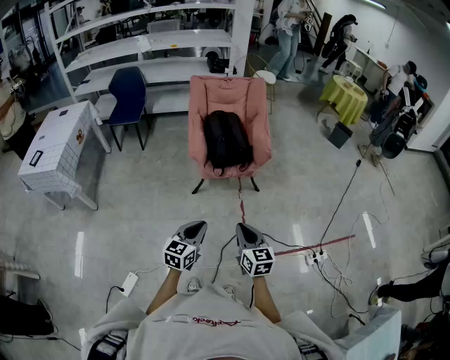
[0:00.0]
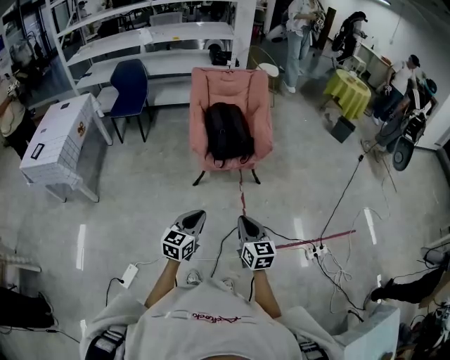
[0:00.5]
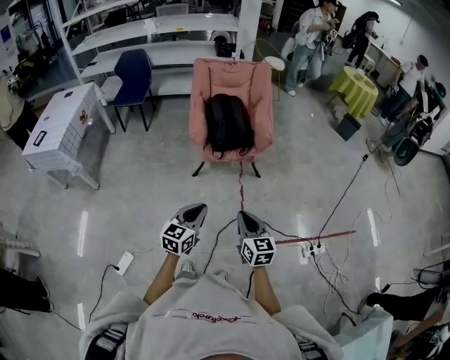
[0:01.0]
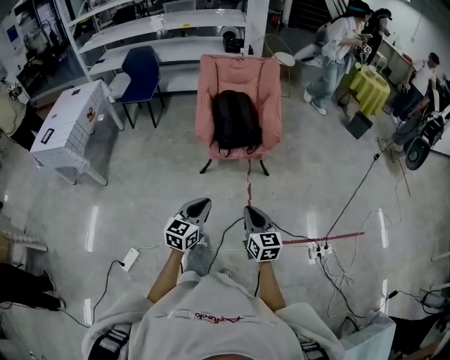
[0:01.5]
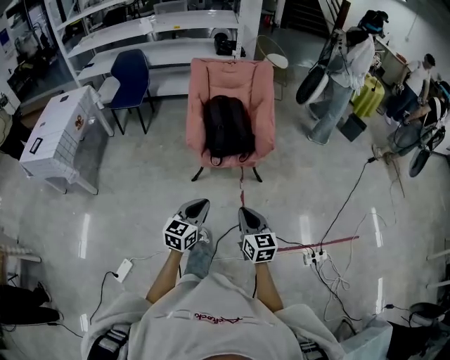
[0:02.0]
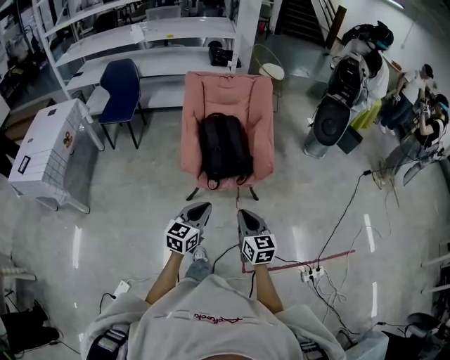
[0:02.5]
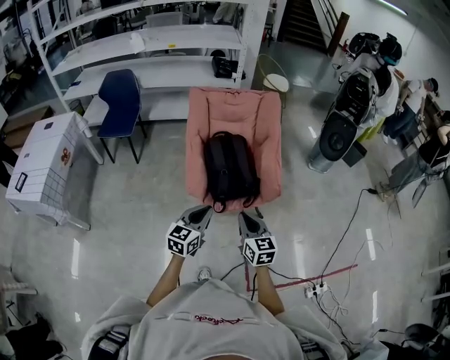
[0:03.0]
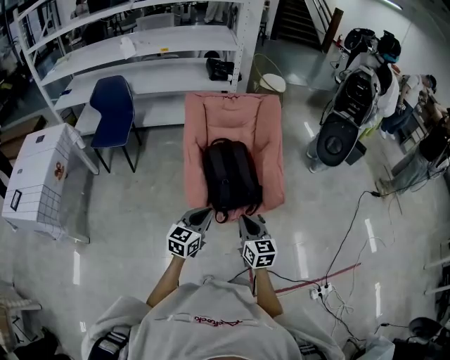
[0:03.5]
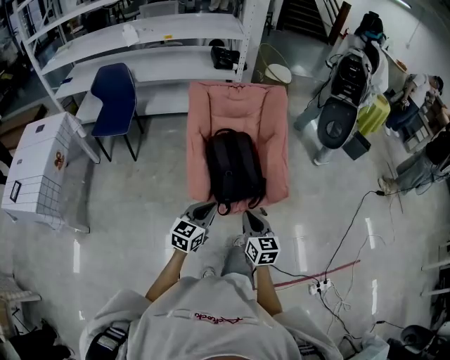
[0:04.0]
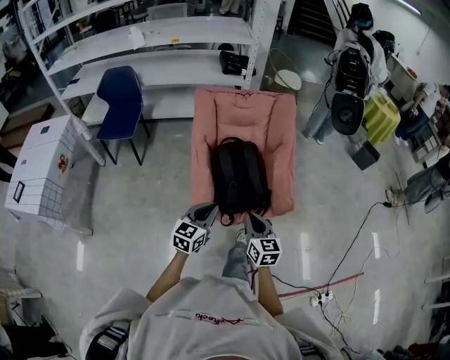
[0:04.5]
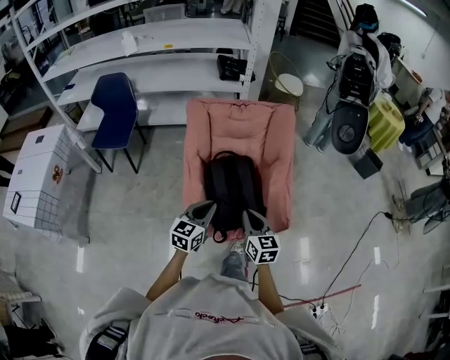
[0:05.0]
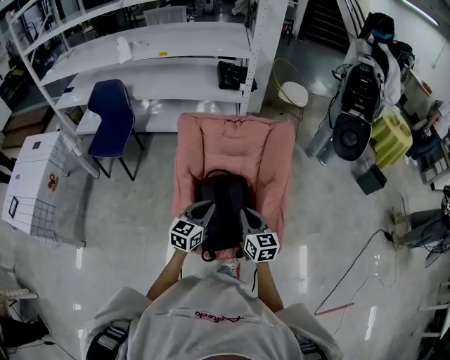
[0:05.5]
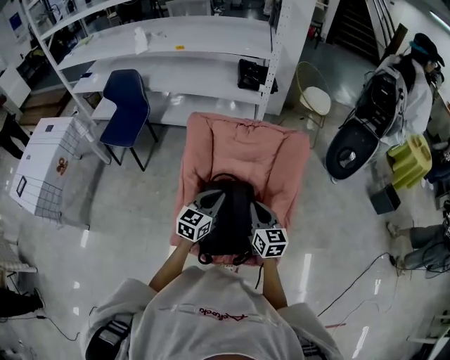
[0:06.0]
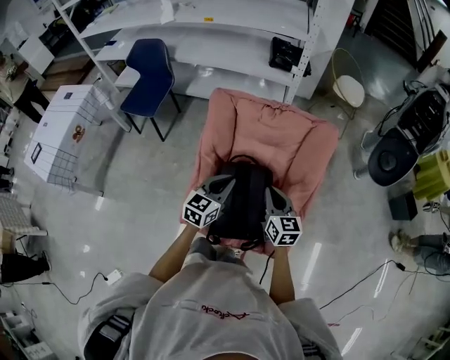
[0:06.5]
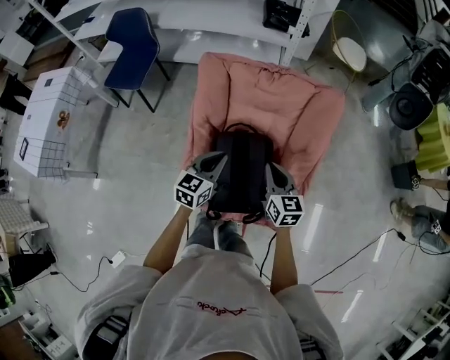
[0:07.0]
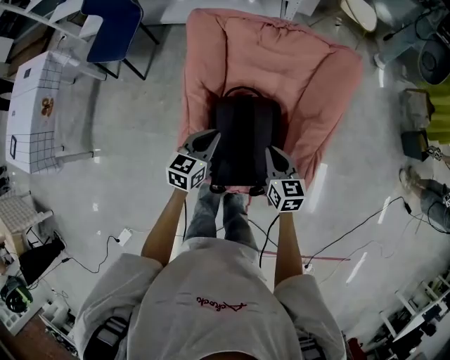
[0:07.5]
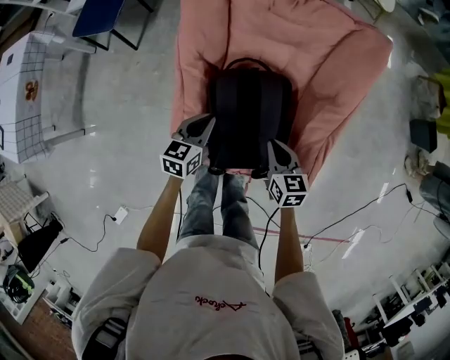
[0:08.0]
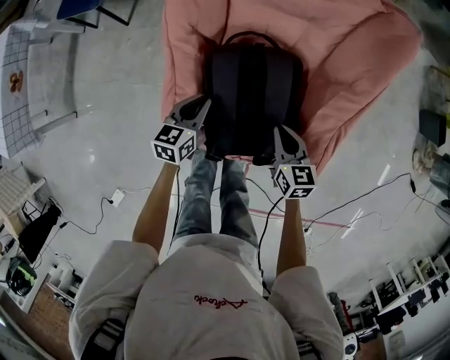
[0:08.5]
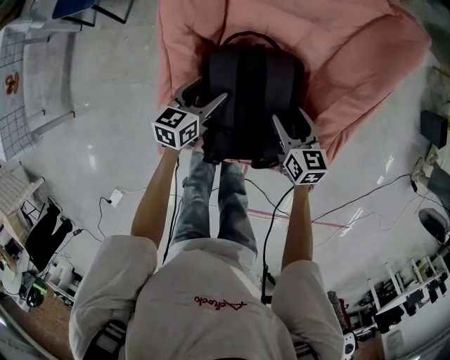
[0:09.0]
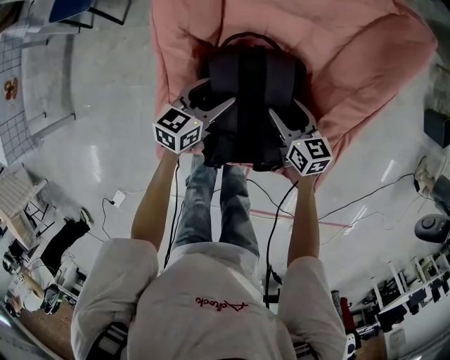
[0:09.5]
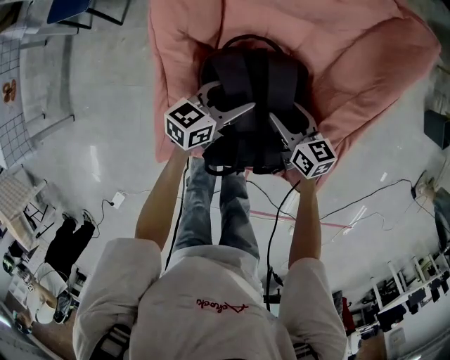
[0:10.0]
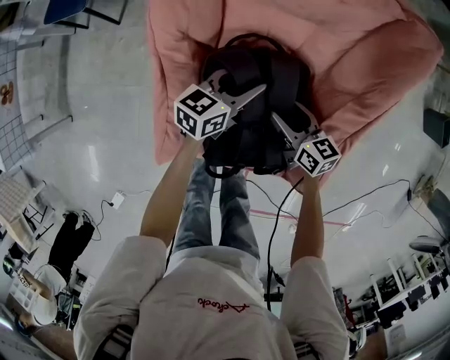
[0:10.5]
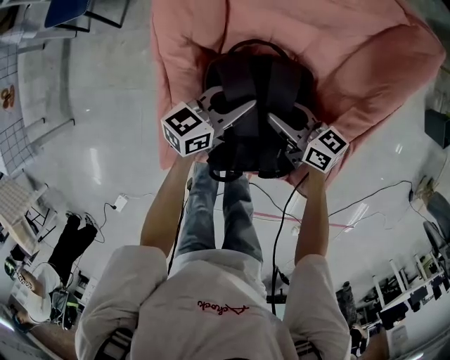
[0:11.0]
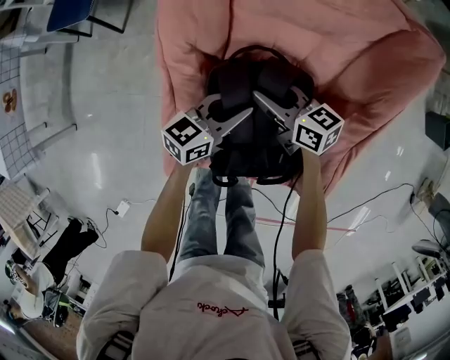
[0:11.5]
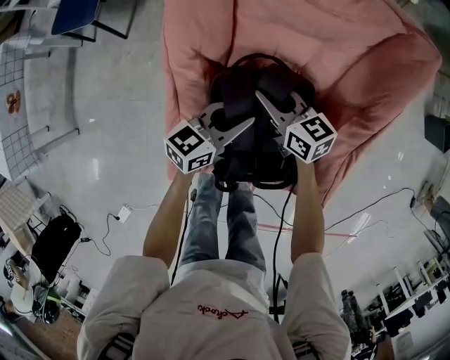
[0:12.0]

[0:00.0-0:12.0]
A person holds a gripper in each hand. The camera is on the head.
0.0 to 2.0 s: The grippers both shift forward and to the right by some 15 cm.
2.0 to 4.0 s: Both grippers move forward, some 35 cm.
4.0 to 6.0 s: The two grippers travel together, forward, roughly 40 cm.
6.0 to 8.0 s: Both grippers travel together downward, approximately 25 cm. The right gripper changes its angle by roughly 20 degrees. Meanwhile the left gripper rotates approximately 20 degrees.
8.0 to 10.0 s: The right gripper goes approximately 15 cm downward and forward, and opens its fingers. Meanwhile the left gripper shifts approximately 15 cm to the right, downward and forward, rotates roughly 20 degrees, and opens up.
10.0 to 12.0 s: The right gripper shifts some 15 cm to the left and forward, and closes up; the left gripper closes up.

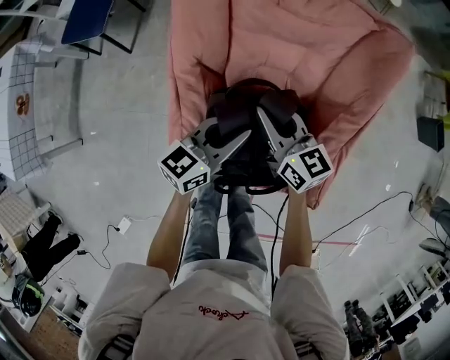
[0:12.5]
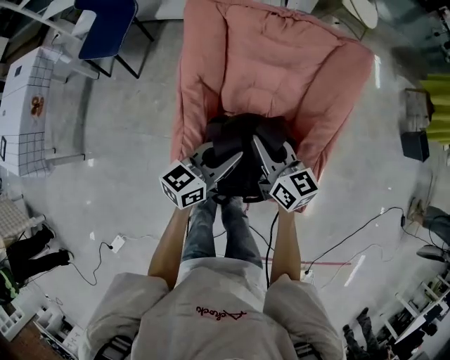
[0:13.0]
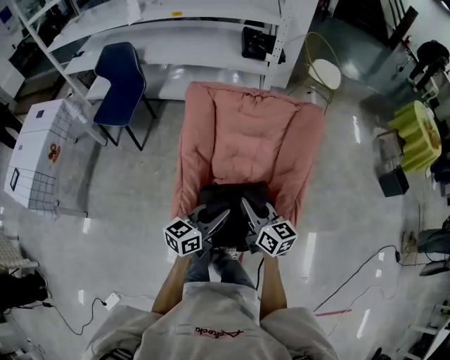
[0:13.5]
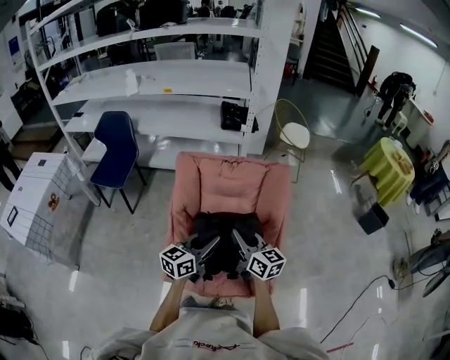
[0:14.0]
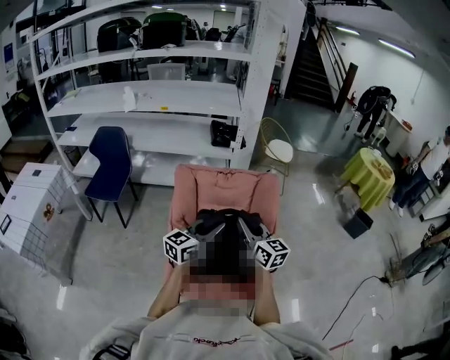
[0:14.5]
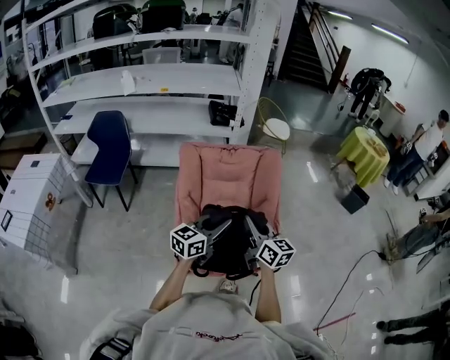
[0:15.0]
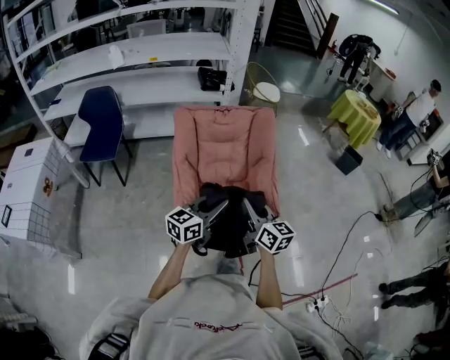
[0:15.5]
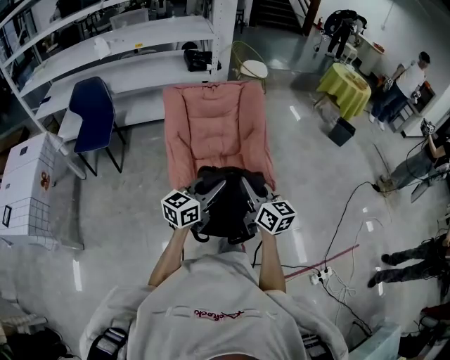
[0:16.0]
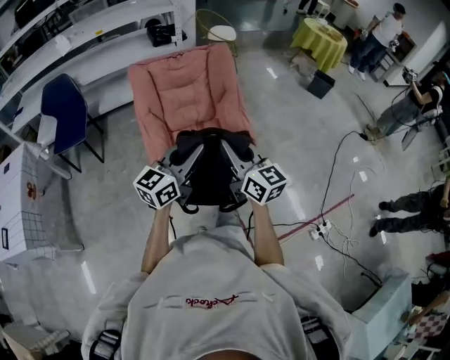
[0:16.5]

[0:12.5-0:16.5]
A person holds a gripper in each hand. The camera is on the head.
12.5 to 14.5 s: The two grippers go some 35 cm upward and backward. The right gripper swivels approximately 20 degrees.
14.5 to 16.5 s: Both grippers move backward, approximately 30 cm.

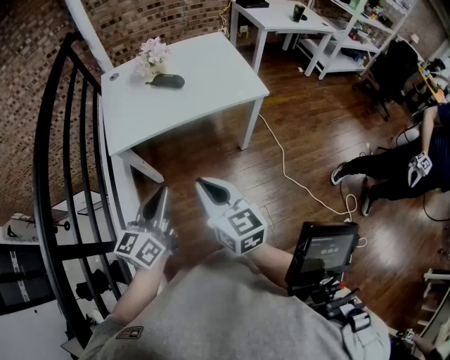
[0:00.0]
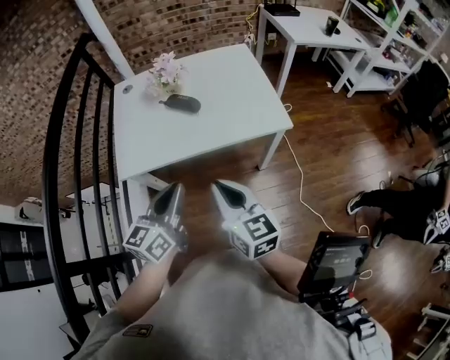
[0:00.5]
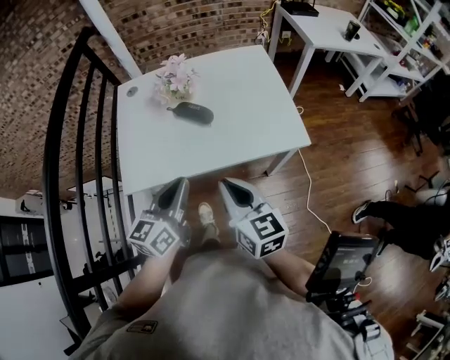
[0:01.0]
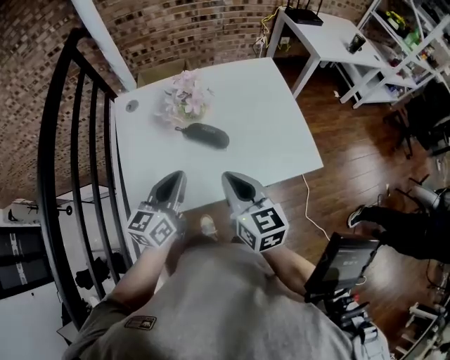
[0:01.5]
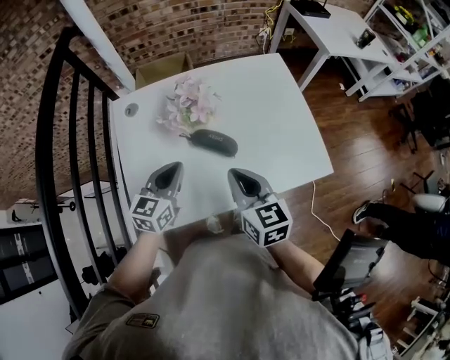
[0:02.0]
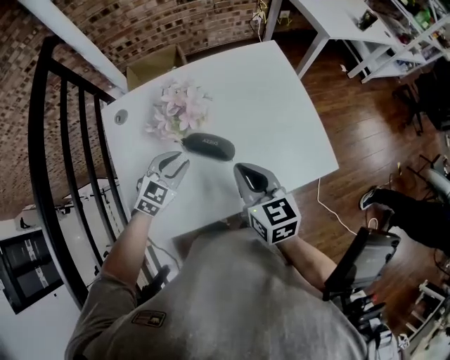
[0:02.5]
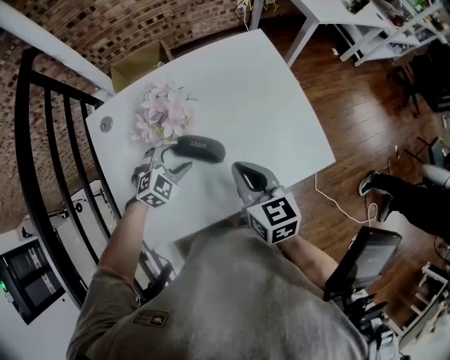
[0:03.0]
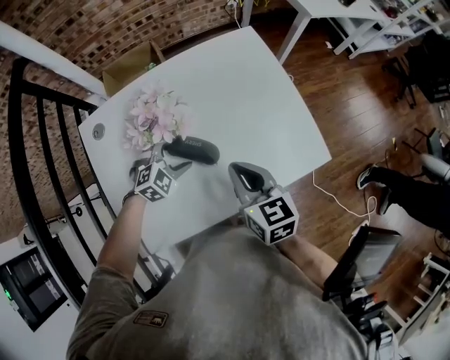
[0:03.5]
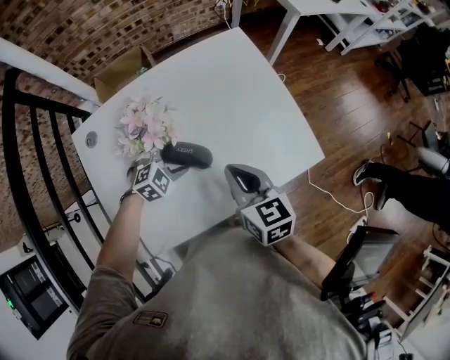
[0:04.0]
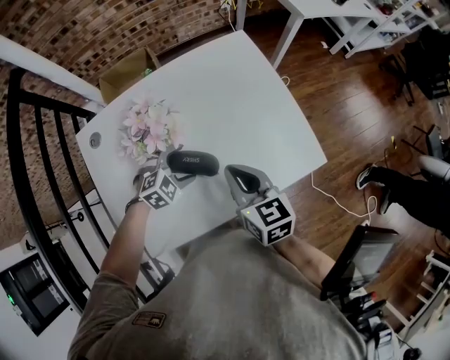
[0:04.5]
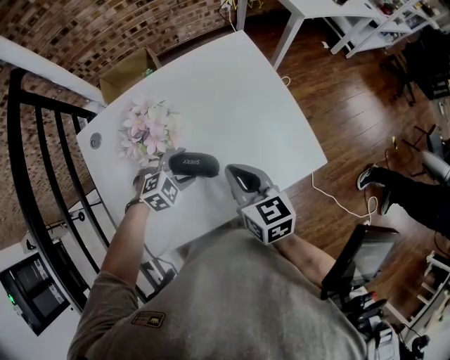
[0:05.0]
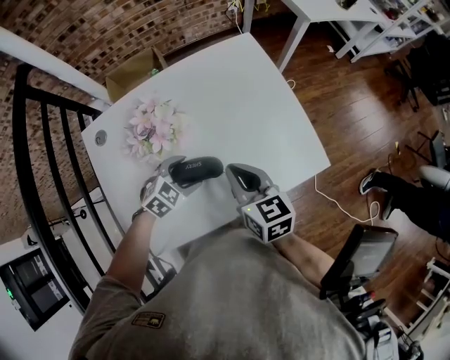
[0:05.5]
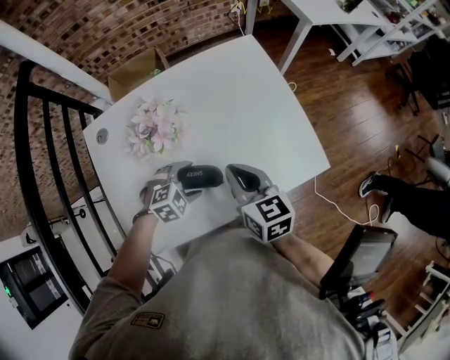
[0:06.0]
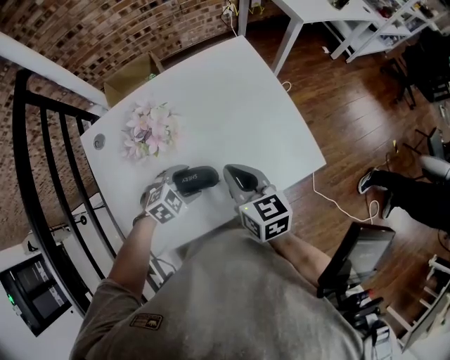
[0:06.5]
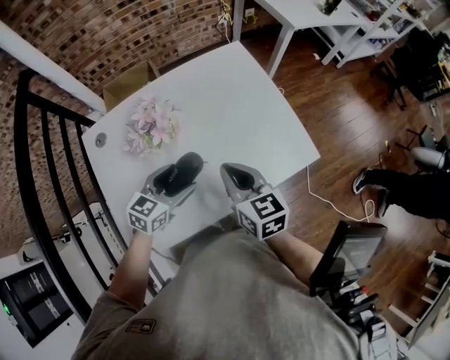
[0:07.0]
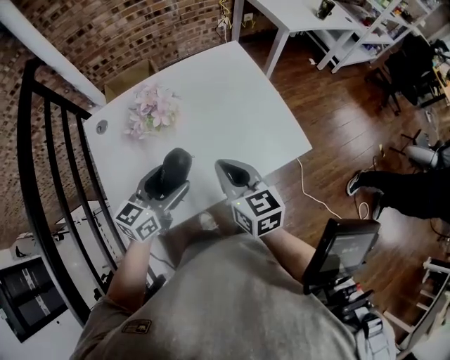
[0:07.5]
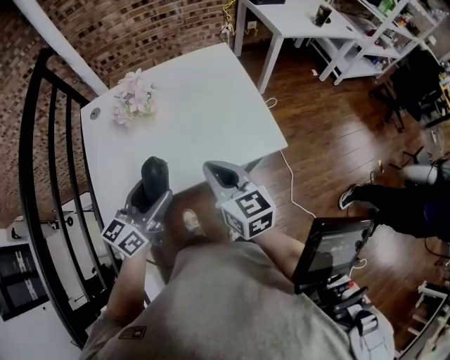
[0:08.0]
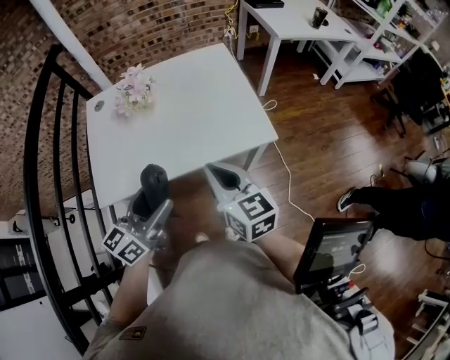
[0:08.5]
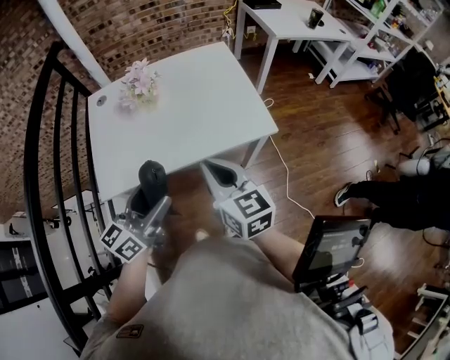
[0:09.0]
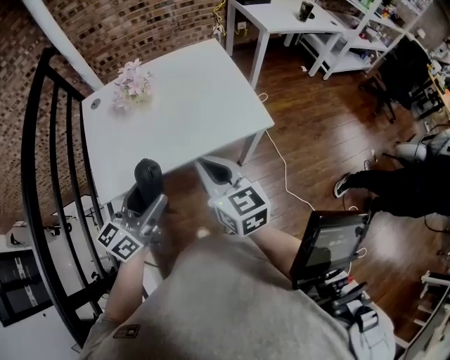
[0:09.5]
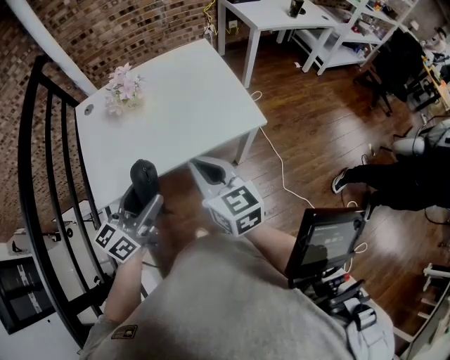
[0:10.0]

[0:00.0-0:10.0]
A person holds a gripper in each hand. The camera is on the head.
0.0 to 2.0 s: The pair of grippers is taken forward, approximately 40 cm. The left gripper swivels approximately 20 degrees.
2.0 to 4.0 s: The left gripper goes about 20 cm downward, forward and to the right, tilts its fingers some 30 degrees downward, and opens up. Meanwhile the right gripper moves forward and to the right, approximately 10 cm.
4.0 to 6.0 s: The left gripper moves backward, roughly 10 cm.
6.0 to 8.0 s: The left gripper shifts some 25 cm upward and backward, and tips its fingers upward by approximately 50 degrees. The right gripper goes some 15 cm backward, to the right and upward.
8.0 to 10.0 s: The grippers both shift backward by some 10 cm.

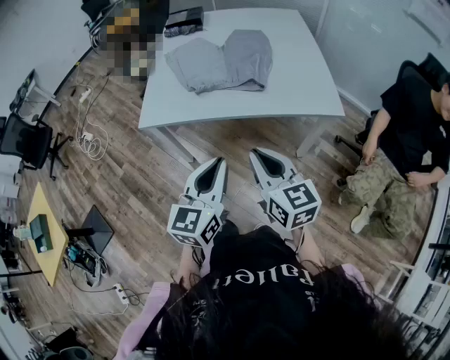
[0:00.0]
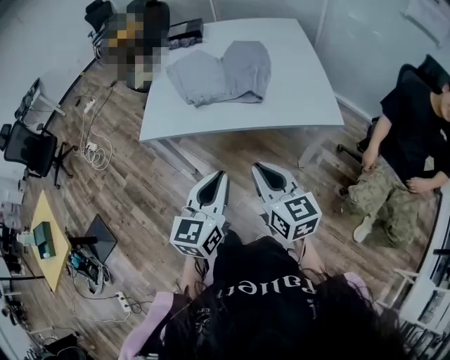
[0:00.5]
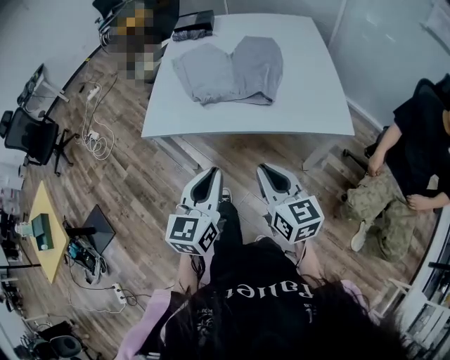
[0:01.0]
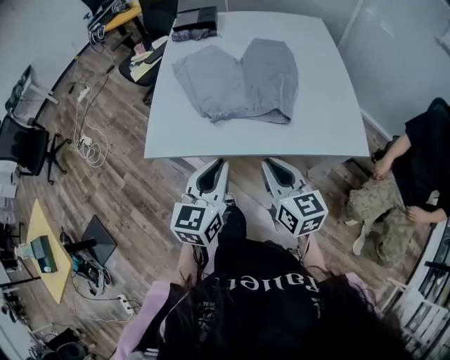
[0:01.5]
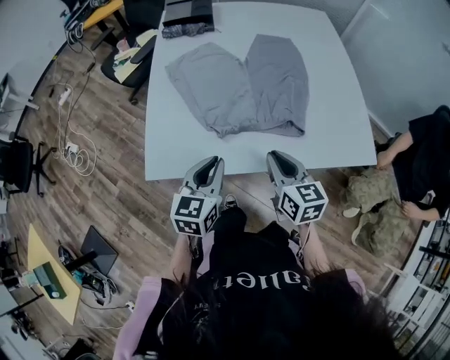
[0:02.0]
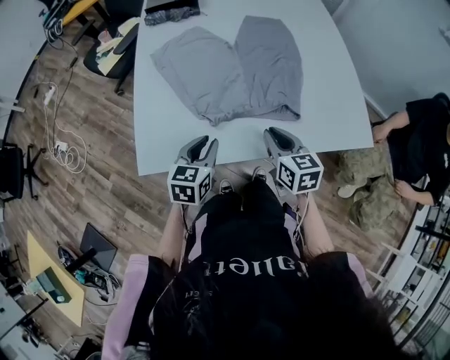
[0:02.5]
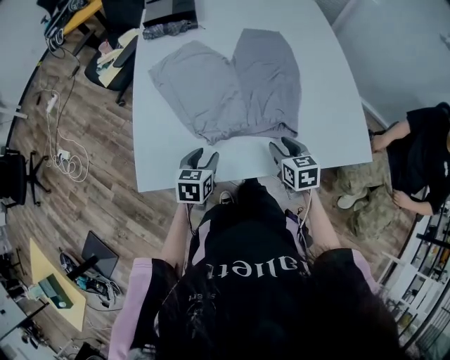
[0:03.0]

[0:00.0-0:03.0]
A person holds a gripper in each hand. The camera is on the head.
0.0 to 1.5 s: Both grippers move forward, some 20 cm.
1.5 to 3.0 s: The left gripper travels downward, forward and to the left by approximately 30 cm, changes its angle by approximately 30 degrees, and opens. Meanwhile the right gripper shifts roughly 25 cm forward and downward, swivels roughly 30 degrees, and opens.
